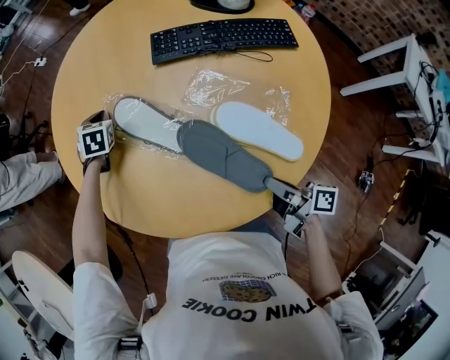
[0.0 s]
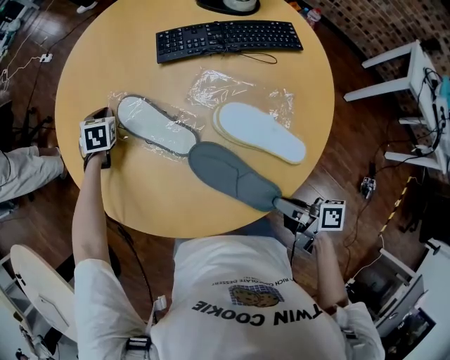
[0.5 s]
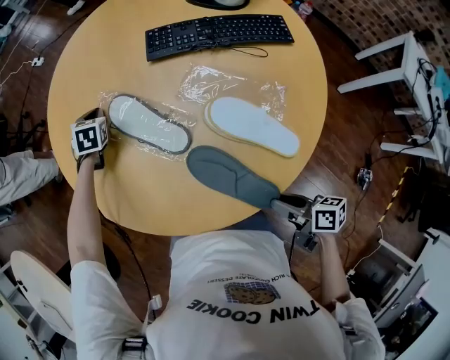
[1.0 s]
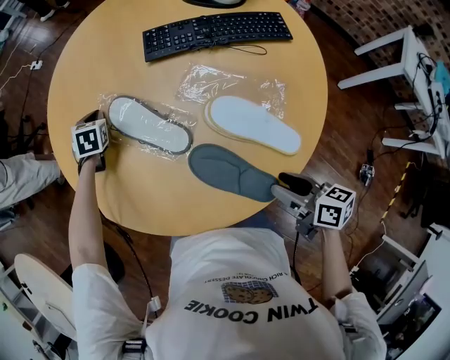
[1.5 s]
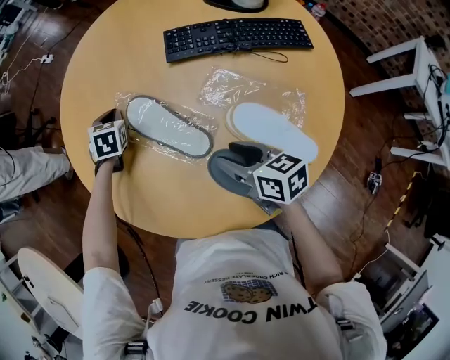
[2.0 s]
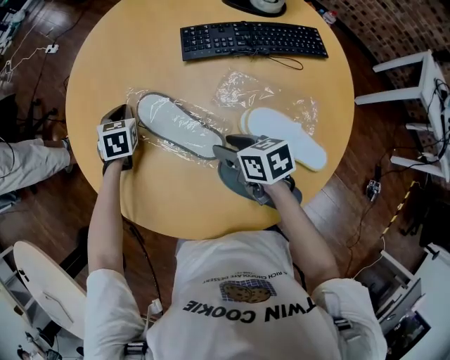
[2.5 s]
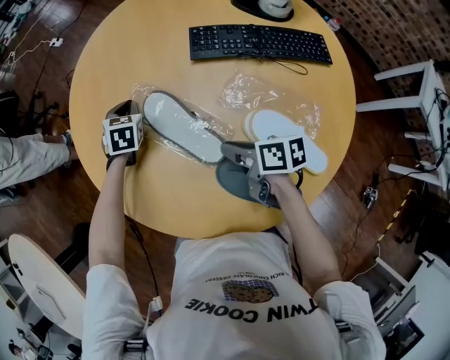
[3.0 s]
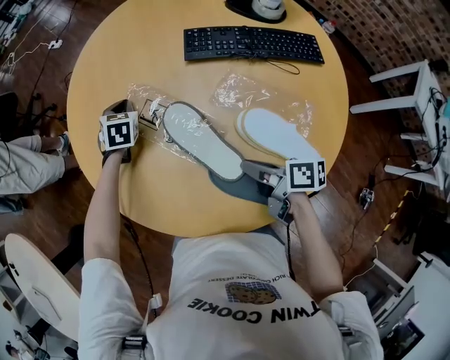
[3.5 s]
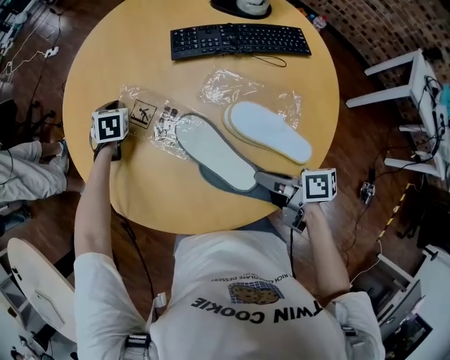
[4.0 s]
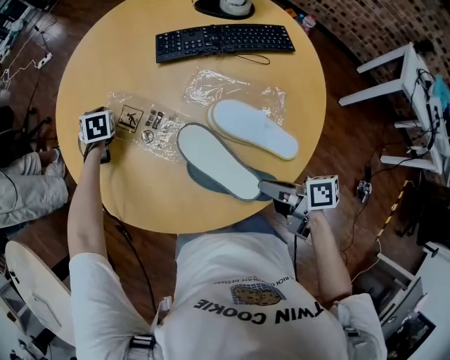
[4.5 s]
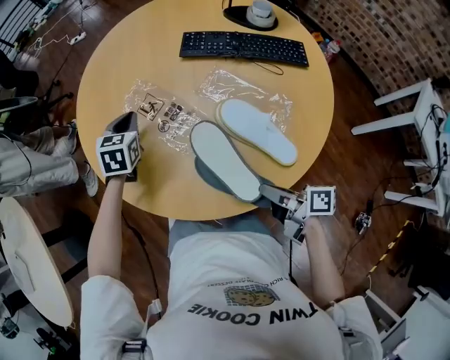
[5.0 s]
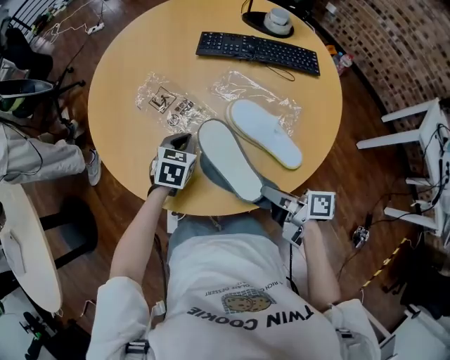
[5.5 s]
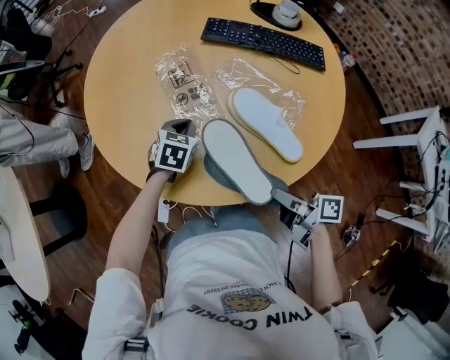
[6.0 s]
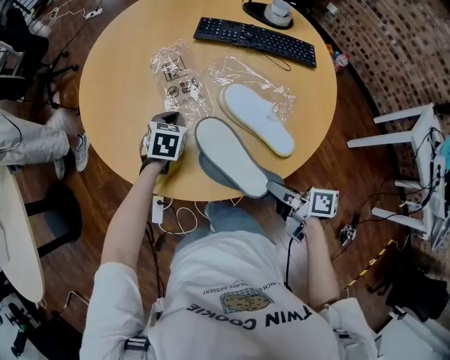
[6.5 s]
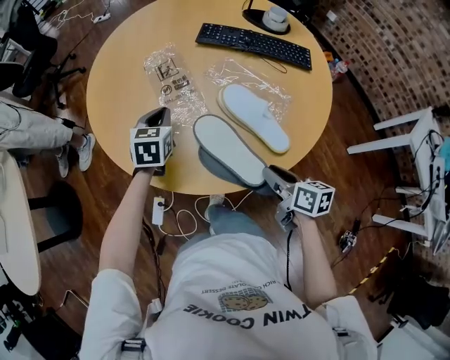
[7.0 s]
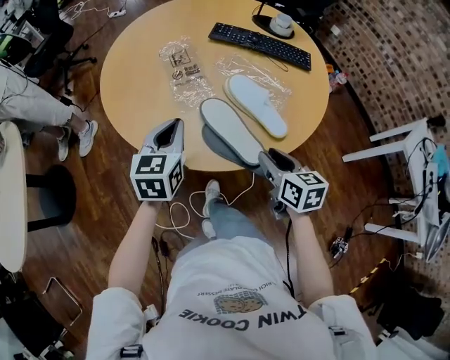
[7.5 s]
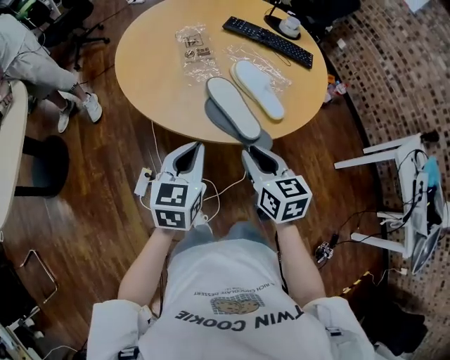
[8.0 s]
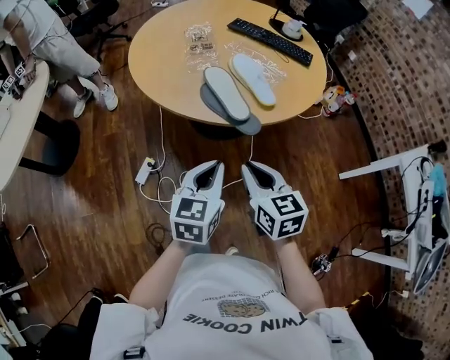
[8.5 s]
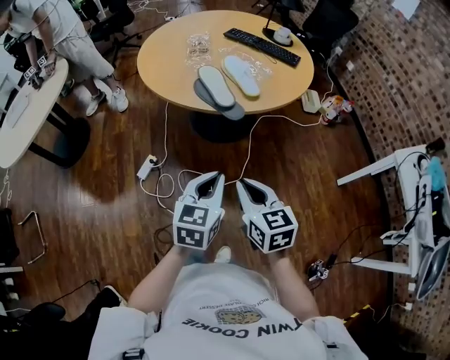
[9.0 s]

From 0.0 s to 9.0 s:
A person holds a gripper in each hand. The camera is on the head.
From 0.0 s to 2.0 s: The right gripper heads forward and to the left, covering some 15 cm, changes its angle by roughly 40 degrees, and opens.
From 2.0 s to 4.5 s: The right gripper shifts some 20 cm backward, changes its angle by roughly 30 degrees, and closes.
From 4.5 s to 7.0 s: The right gripper moves to the right and backward, roughly 10 cm, and swivels about 30 degrees. The left gripper shifts some 30 cm backward, and turns by roughly 30 degrees.
From 7.0 s to 9.0 s: The left gripper moves backward, approximately 60 cm. Meanwhile the right gripper is displaced backward by some 40 cm, rotates approximately 40 degrees, and closes.

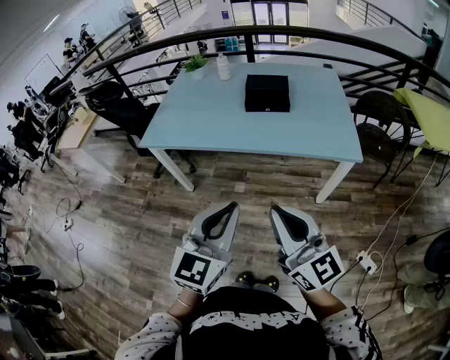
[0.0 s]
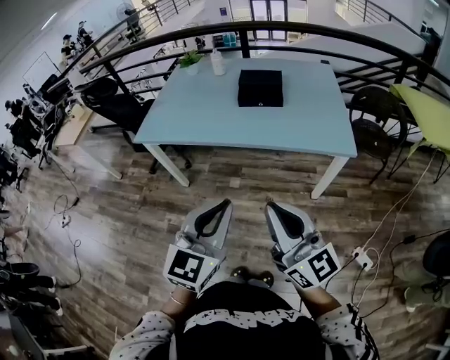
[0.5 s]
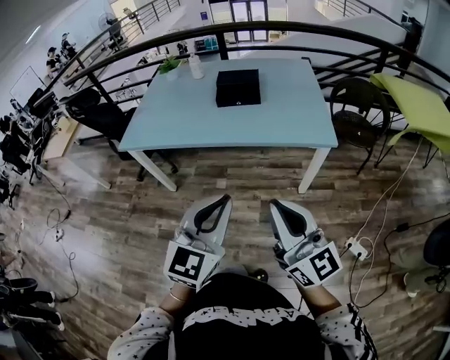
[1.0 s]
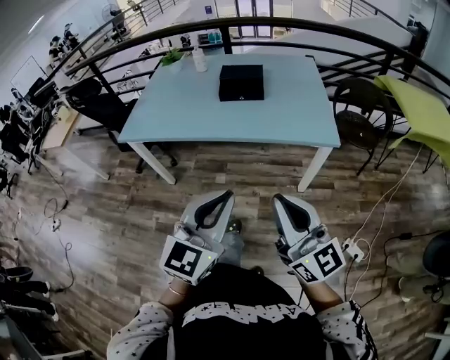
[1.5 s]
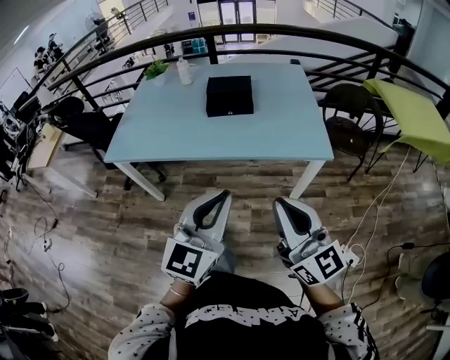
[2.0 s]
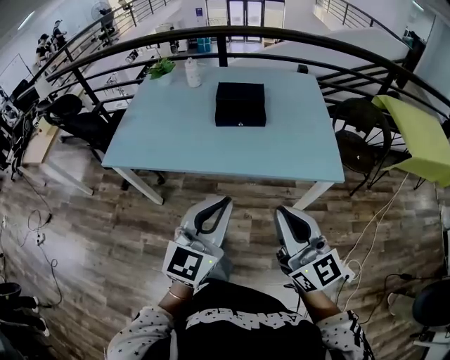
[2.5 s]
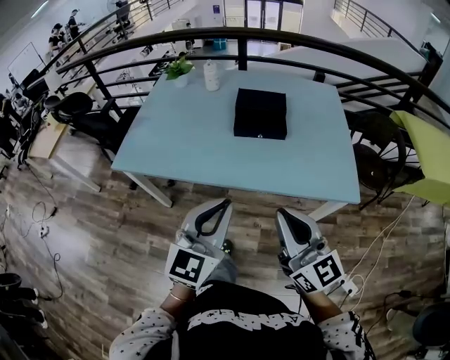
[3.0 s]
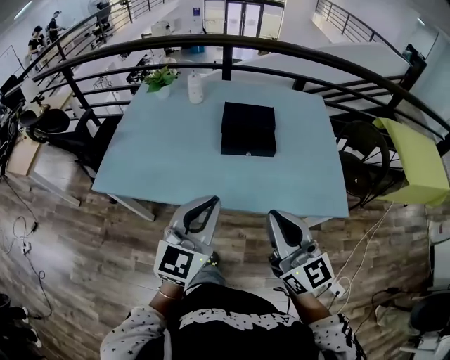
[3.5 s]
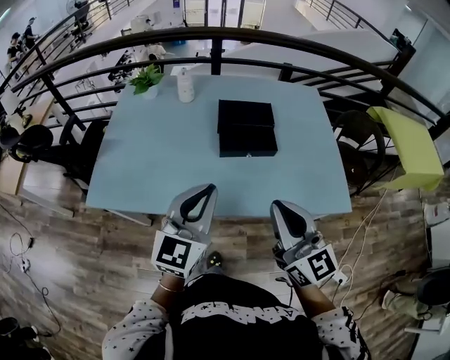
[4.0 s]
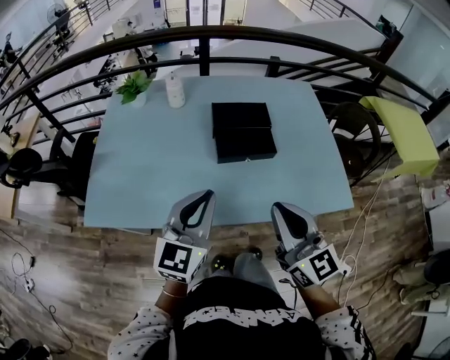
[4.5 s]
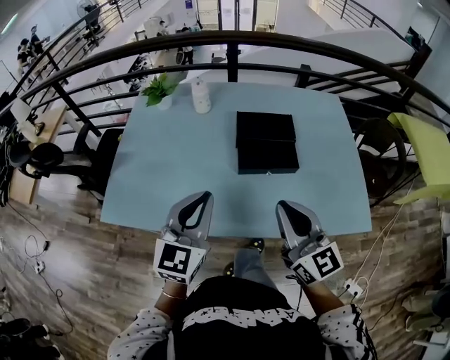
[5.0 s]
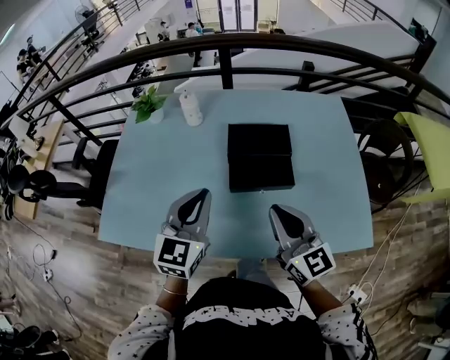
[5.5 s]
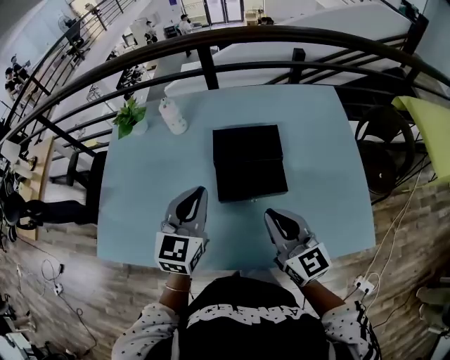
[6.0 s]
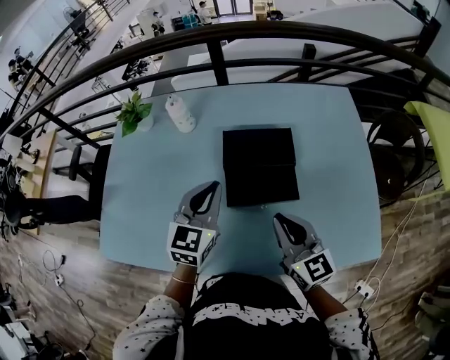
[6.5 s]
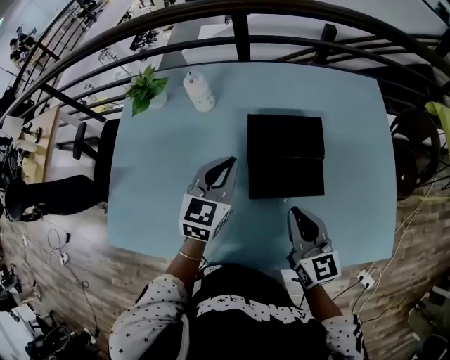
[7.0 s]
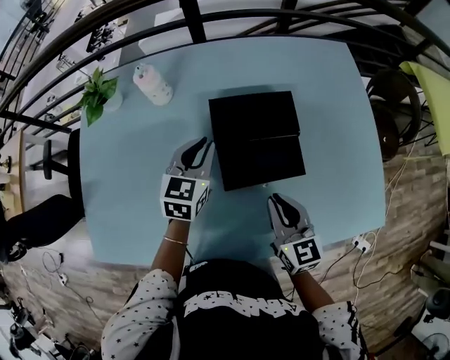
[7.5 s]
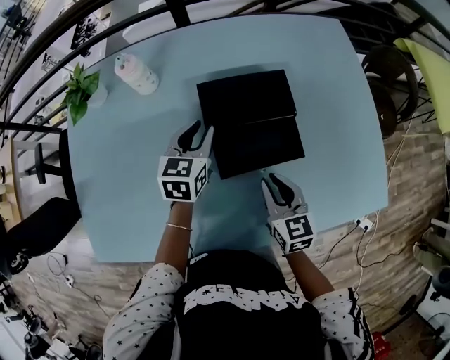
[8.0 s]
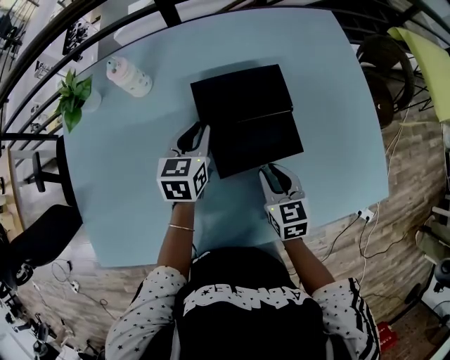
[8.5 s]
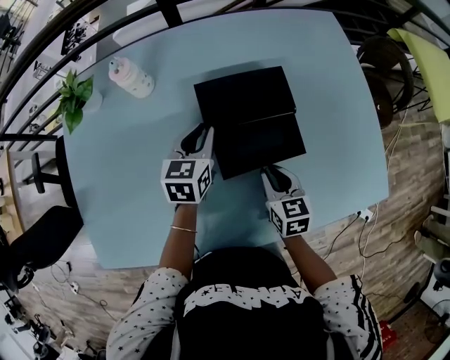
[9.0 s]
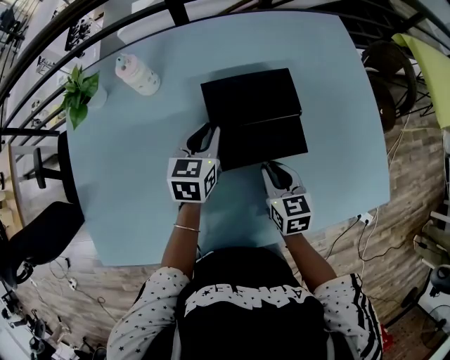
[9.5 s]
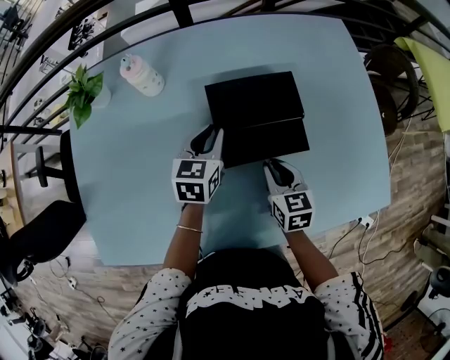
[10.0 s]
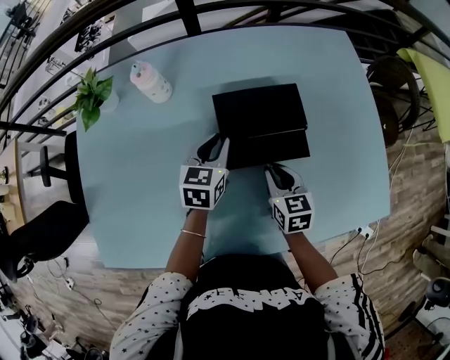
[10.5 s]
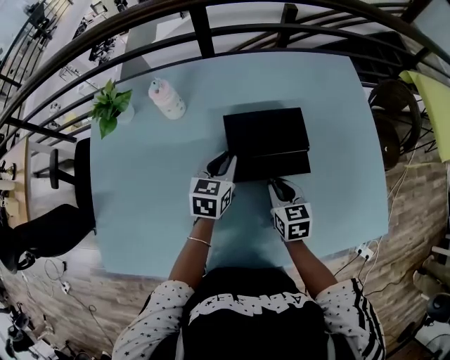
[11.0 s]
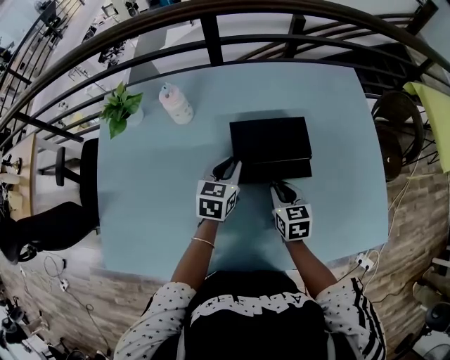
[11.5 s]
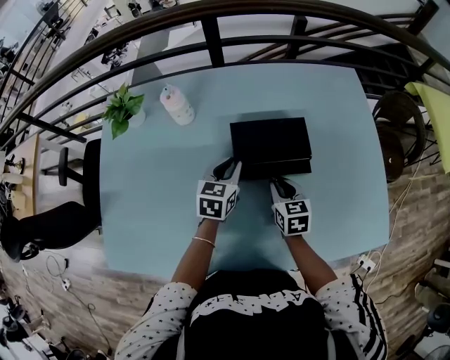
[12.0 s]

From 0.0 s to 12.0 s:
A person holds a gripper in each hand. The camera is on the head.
From 0.0 s to 2.0 s: The left gripper heads to the right and forward, covering approximately 10 cm. Meanwhile the right gripper shifts some 10 cm to the right.
From 2.0 s to 4.0 s: Both grippers travel together forward and to the left, some 40 cm.
From 4.0 s to 6.0 s: The right gripper moves forward and downward, about 25 cm. Meanwhile the left gripper moves forward, some 25 cm.
From 6.0 s to 8.0 s: Both grippers travel together downward and forward, some 25 cm. The left gripper rotates roughly 20 degrees; the right gripper turns by about 30 degrees.
From 8.0 s to 10.0 s: The right gripper shifts by roughly 5 cm.
From 10.0 s to 12.0 s: The grippers stay close to where they were, moving slightly.

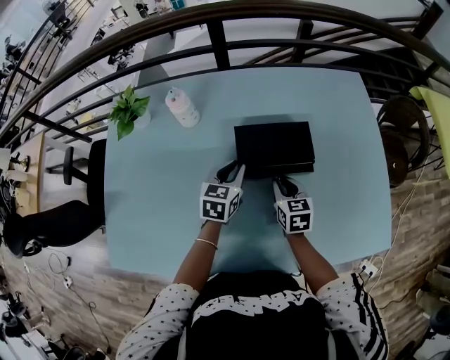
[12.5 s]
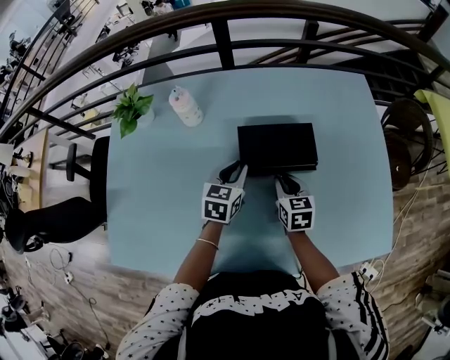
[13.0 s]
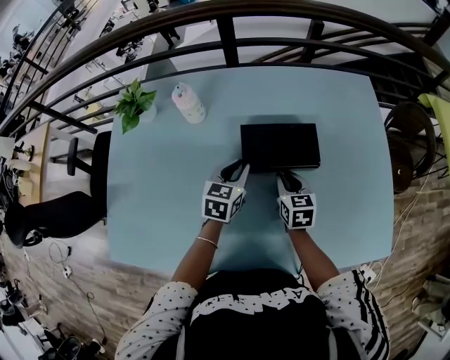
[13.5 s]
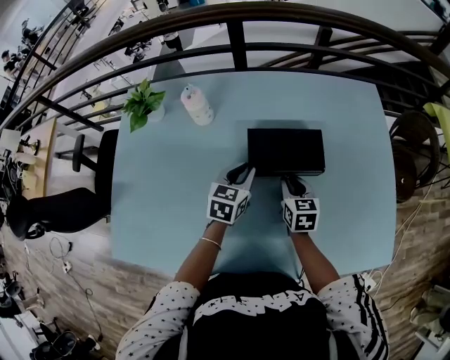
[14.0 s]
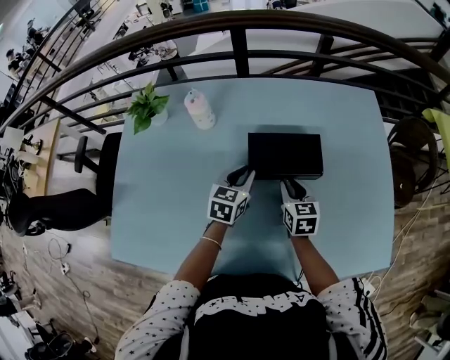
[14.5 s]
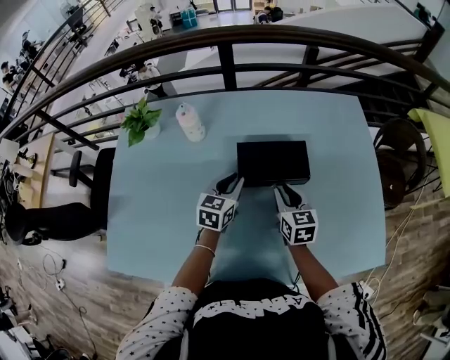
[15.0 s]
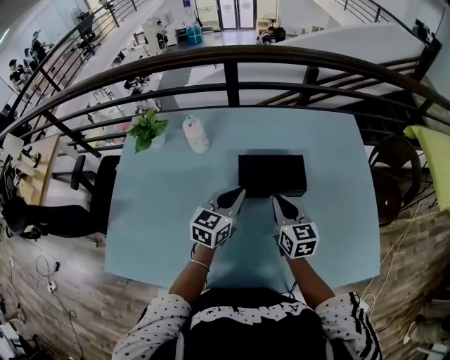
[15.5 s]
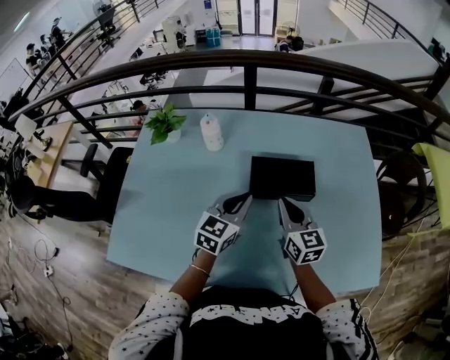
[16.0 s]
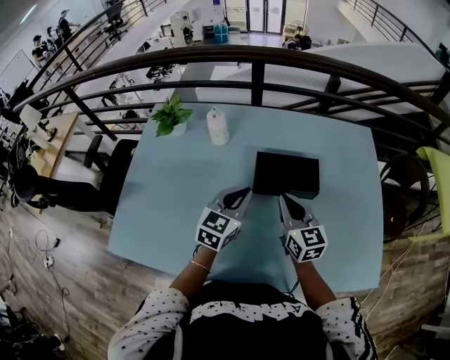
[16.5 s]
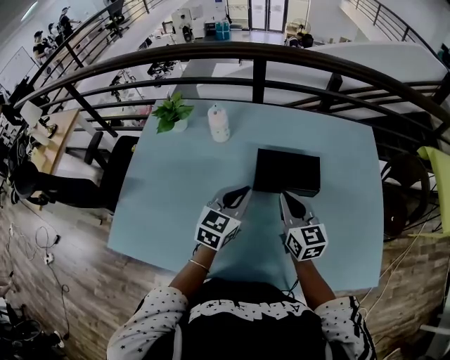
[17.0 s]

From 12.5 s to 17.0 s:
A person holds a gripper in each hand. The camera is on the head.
From 12.5 s to 14.5 s: There are only small adjustments of the grippers.
From 14.5 s to 17.0 s: The grippers both shift upward and backward by about 15 cm. The right gripper rotates roughly 30 degrees.

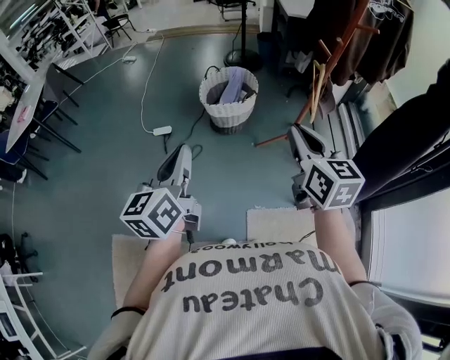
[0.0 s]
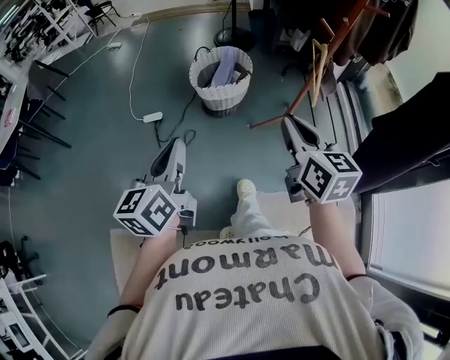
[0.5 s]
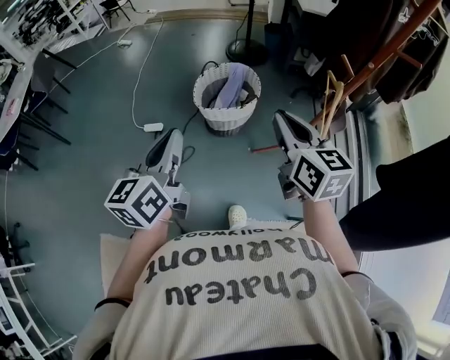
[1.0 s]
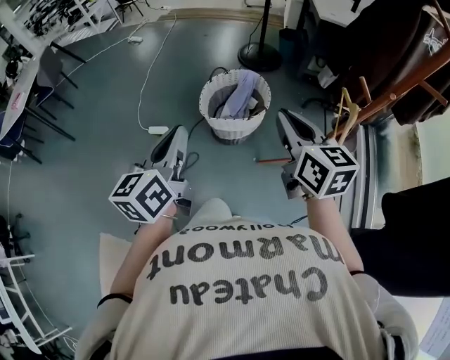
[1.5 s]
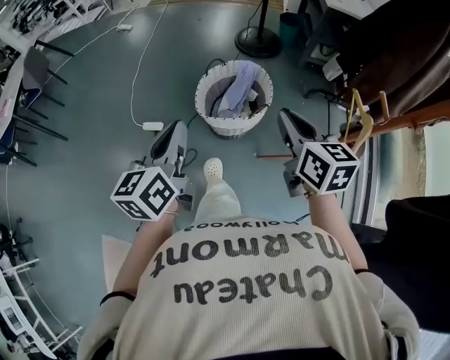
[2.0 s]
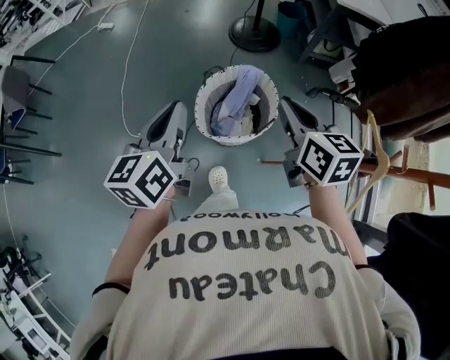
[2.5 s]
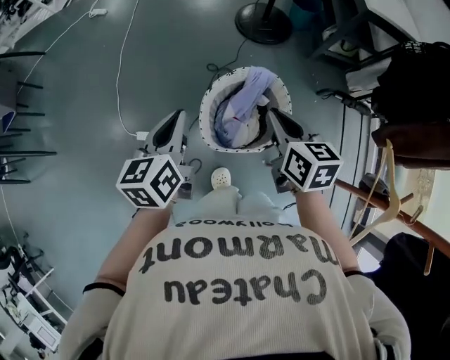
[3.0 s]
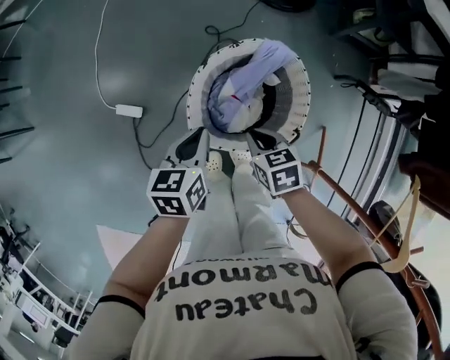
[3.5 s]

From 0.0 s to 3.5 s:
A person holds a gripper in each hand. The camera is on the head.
From 0.0 s to 2.0 s: Both grippers travel together forward, some 40 cm.
From 2.0 s to 3.5 s: The two grippers go roughly 50 cm downward and forward. The left gripper tips its fingers downward by about 30 degrees; the right gripper points its fingers about 40 degrees further downward.
